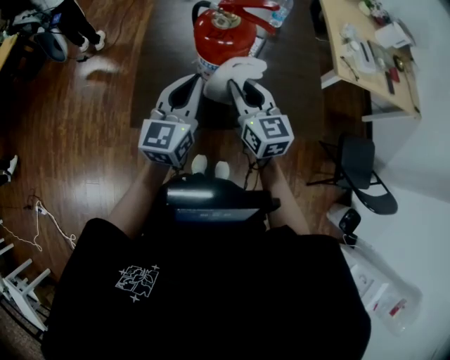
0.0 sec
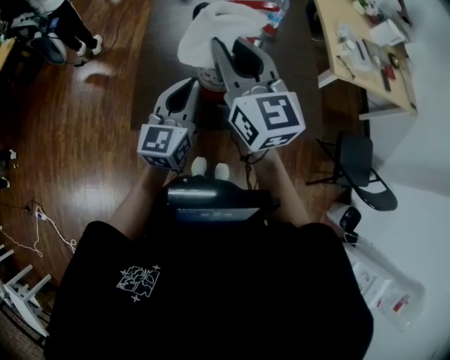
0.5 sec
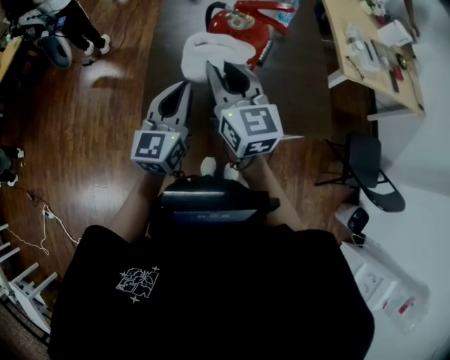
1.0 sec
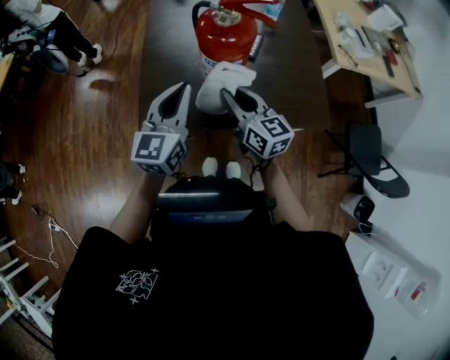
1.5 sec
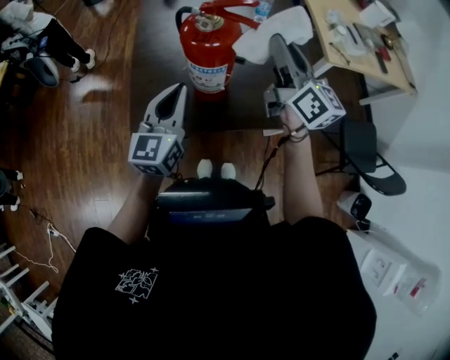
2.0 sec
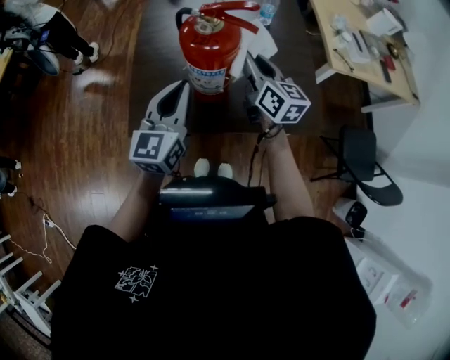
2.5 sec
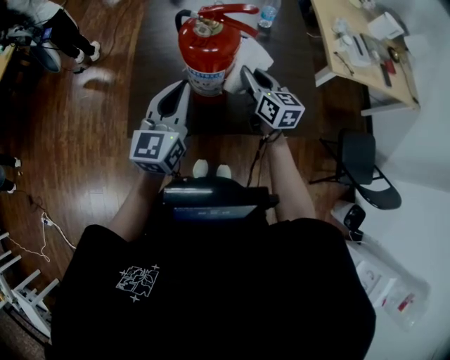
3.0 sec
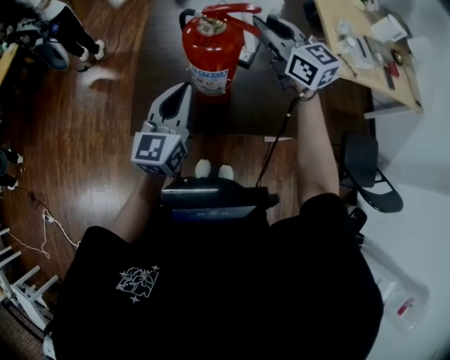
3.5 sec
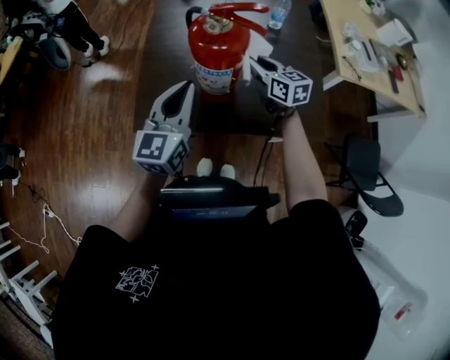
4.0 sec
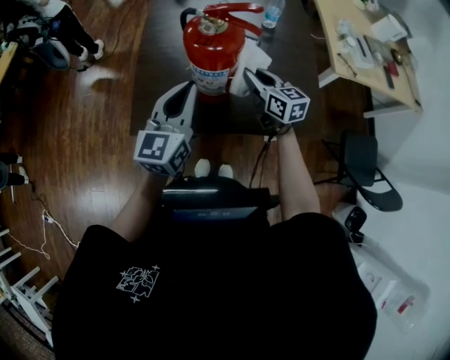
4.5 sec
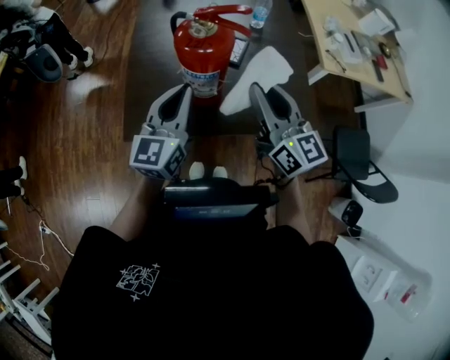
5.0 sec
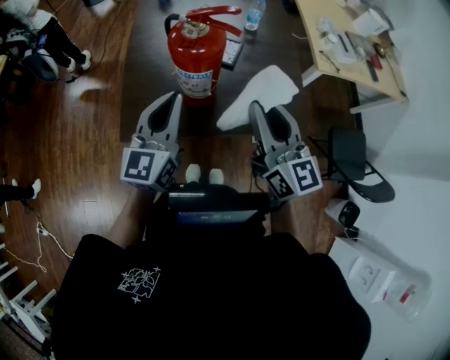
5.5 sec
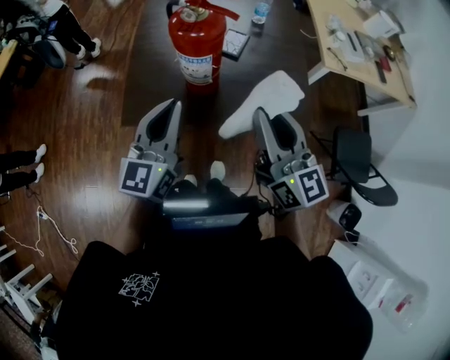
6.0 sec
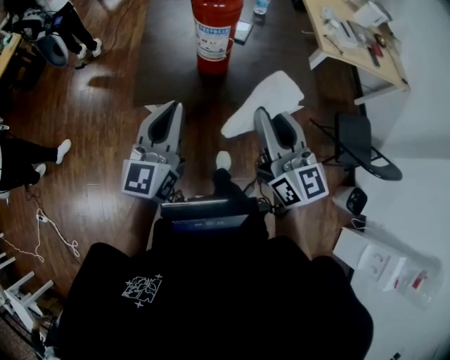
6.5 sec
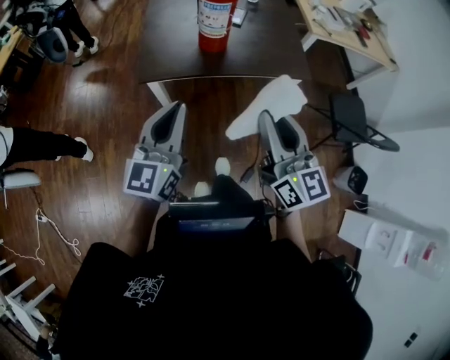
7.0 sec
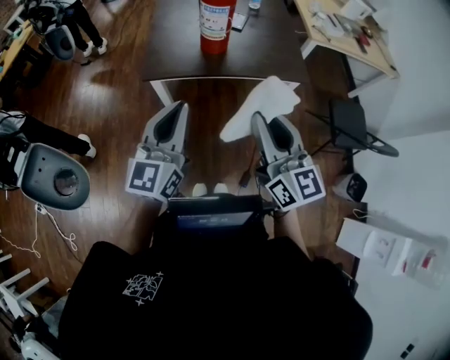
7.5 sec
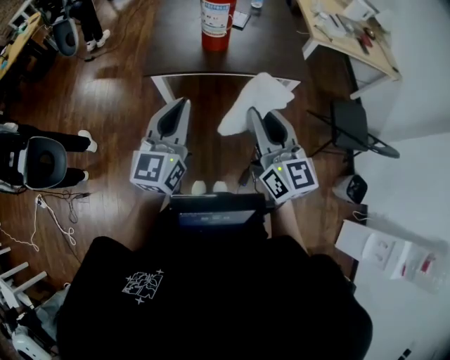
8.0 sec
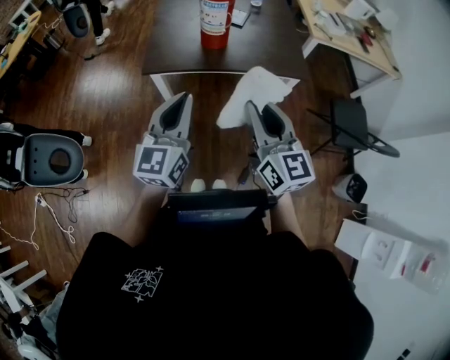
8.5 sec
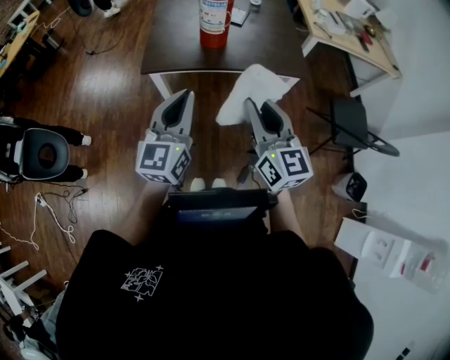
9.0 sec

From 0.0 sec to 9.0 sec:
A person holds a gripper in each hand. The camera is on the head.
From 0.0 sec to 2.0 sec: The right gripper goes up and down, some 20 cm each way, reversing 2 times, and turns by roughly 30 degrees.
From 2.0 sec to 4.5 sec: The right gripper swings up and down, approximately 20 cm each way, with 2 reversals, and swivels roughly 30 degrees.
From 4.5 sec to 7.0 sec: The right gripper is displaced backward and upward by approximately 50 cm, and swivels approximately 30 degrees; the left gripper travels backward by some 35 cm.
From 7.0 sec to 9.0 sec: The left gripper shifts roughly 5 cm to the right.

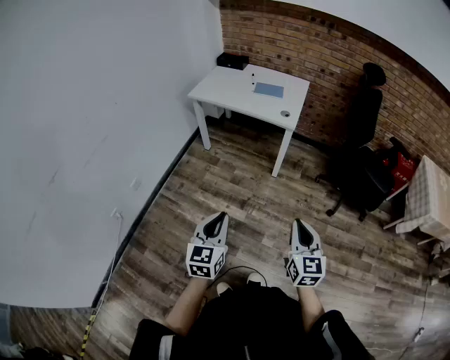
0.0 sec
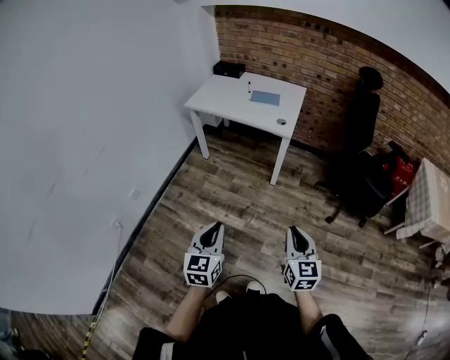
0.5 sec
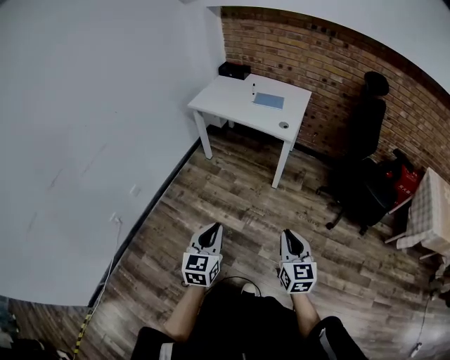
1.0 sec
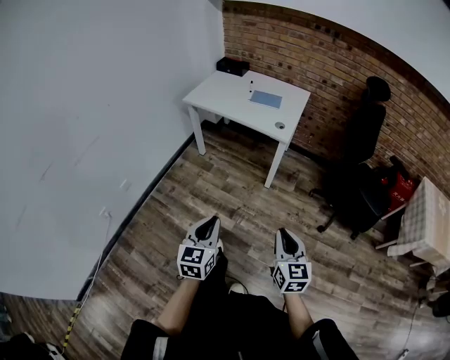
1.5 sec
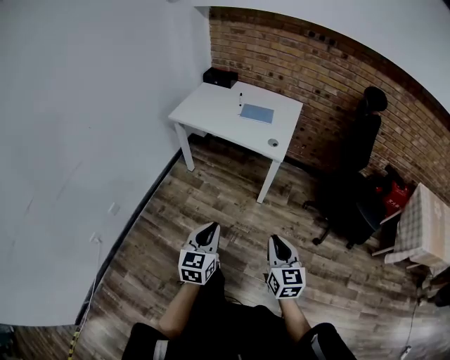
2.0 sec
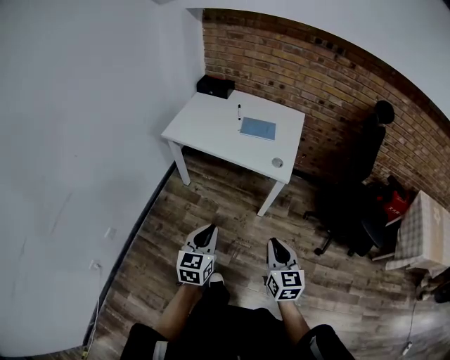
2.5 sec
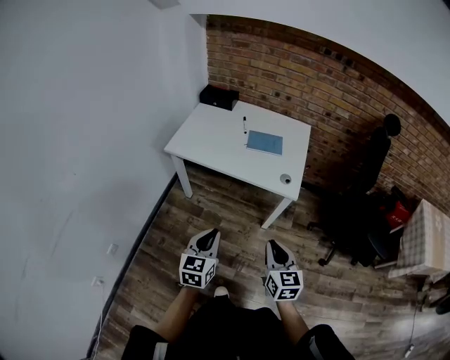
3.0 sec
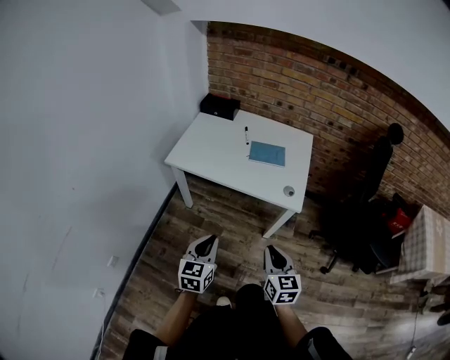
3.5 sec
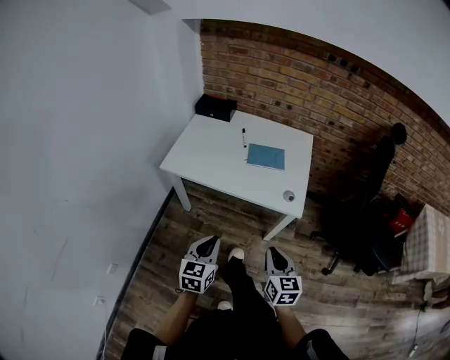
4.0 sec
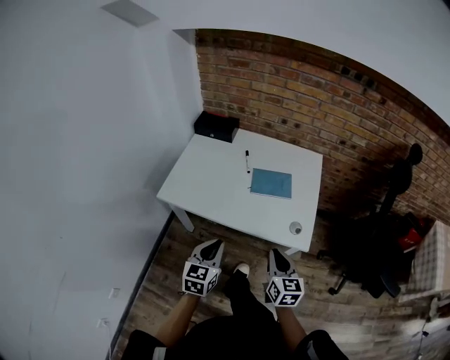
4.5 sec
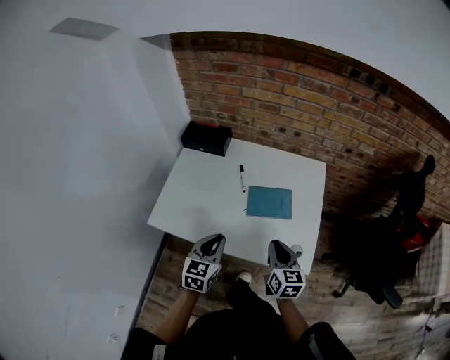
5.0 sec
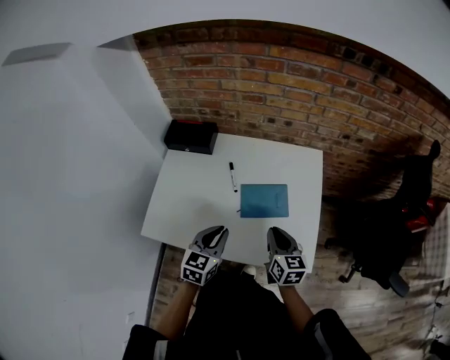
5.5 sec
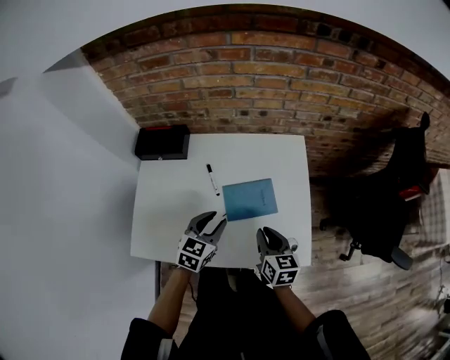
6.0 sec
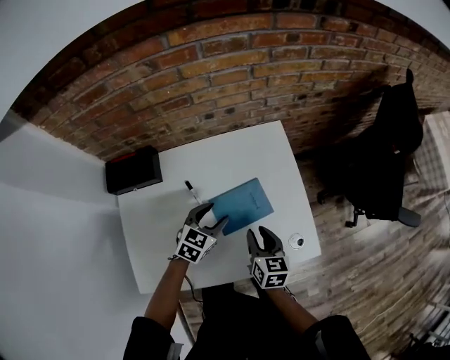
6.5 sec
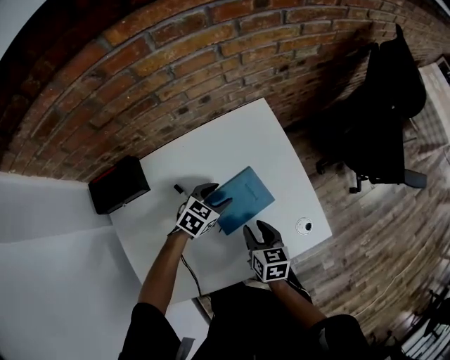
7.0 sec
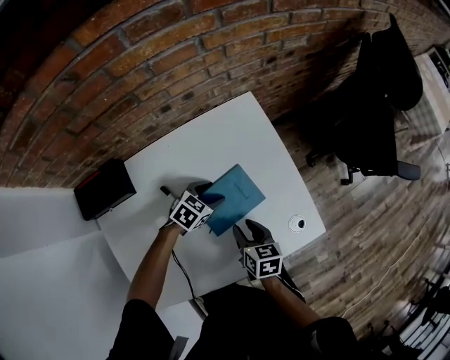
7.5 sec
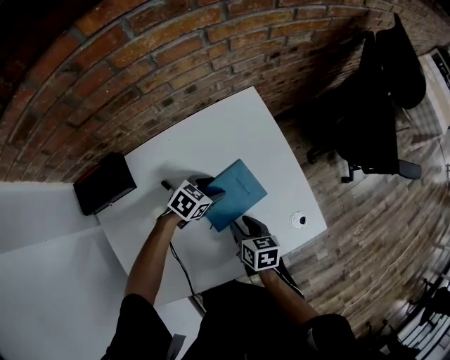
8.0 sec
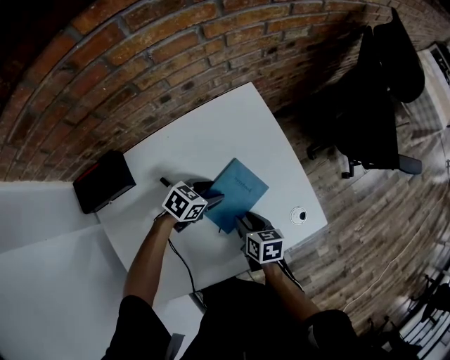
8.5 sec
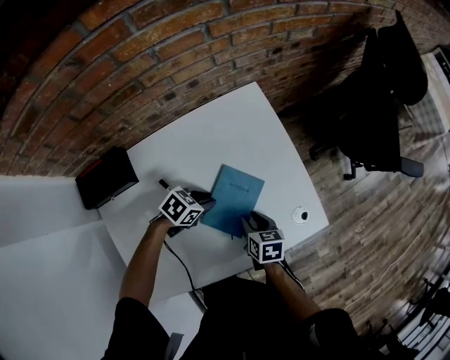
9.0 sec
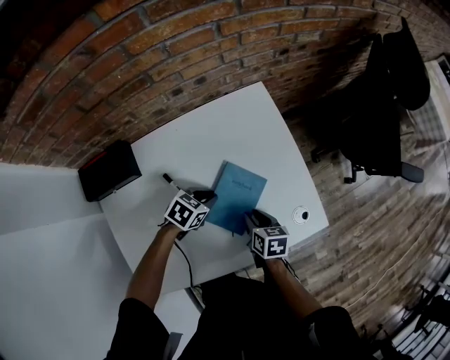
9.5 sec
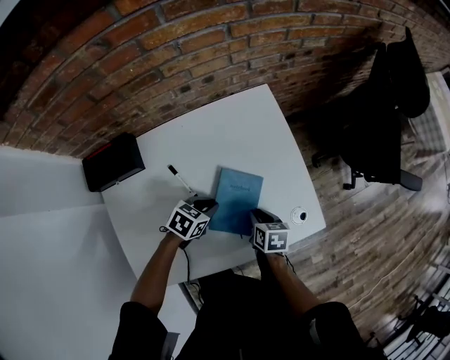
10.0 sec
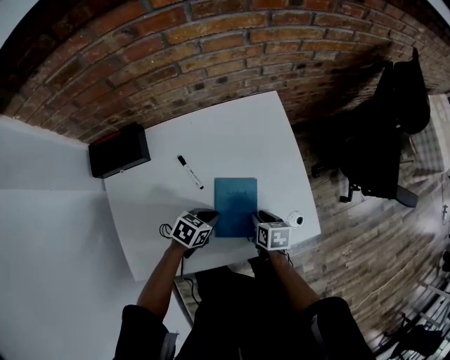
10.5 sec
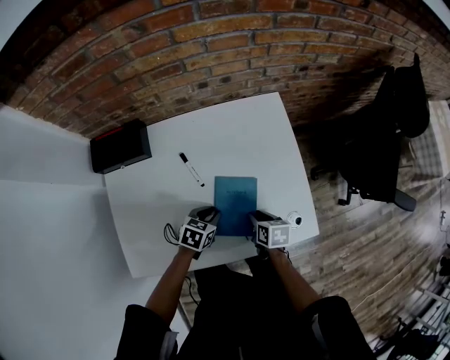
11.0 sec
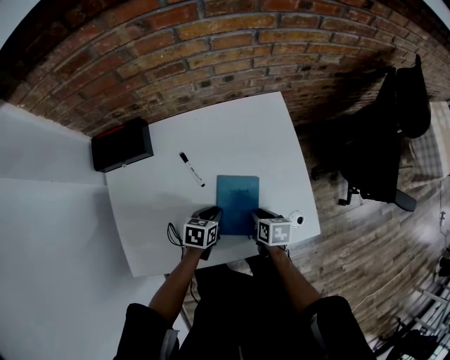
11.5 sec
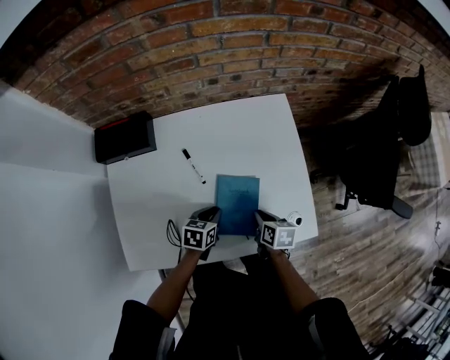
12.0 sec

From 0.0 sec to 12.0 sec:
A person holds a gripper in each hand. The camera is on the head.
From 0.0 sec to 2.0 sec: The two grippers go some 20 cm forward.
From 2.0 sec to 4.0 sec: The two grippers go approximately 35 cm forward and to the left.
From 4.0 sec to 6.0 sec: The pair of grippers is taken forward, roughly 50 cm. The left gripper rotates approximately 30 degrees, and opens up.
From 6.0 sec to 8.0 sec: Both grippers travel together downward, roughly 15 cm. The right gripper rotates some 30 degrees, and opens its fingers. The left gripper swivels roughly 50 degrees, and opens its fingers.
From 8.0 sec to 10.0 sec: The left gripper shifts approximately 10 cm backward, and closes its fingers. The right gripper shifts by approximately 5 cm.
From 10.0 sec to 12.0 sec: The left gripper heads backward, covering roughly 5 cm, and swivels some 30 degrees.

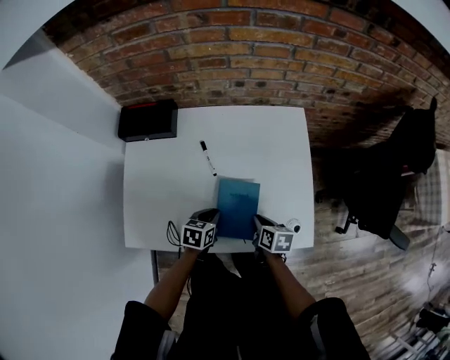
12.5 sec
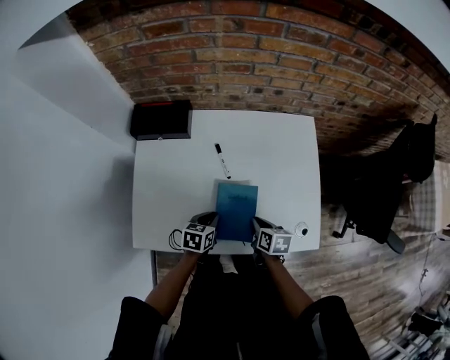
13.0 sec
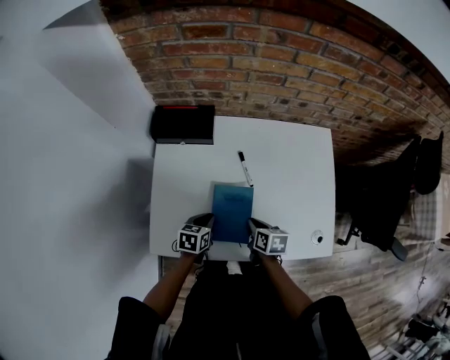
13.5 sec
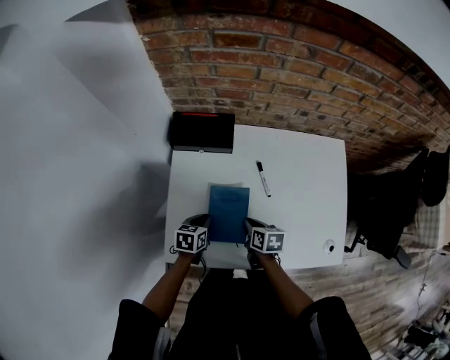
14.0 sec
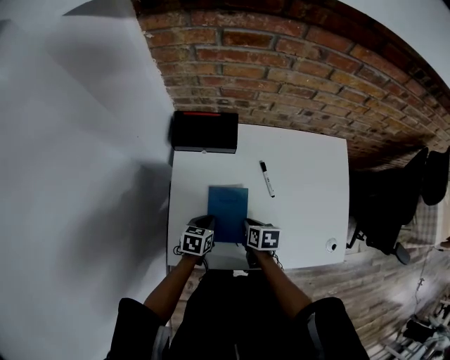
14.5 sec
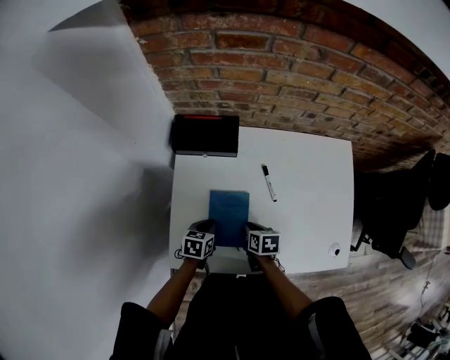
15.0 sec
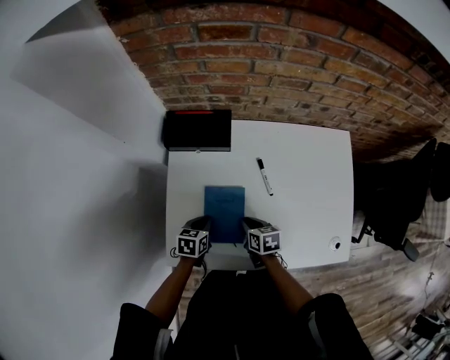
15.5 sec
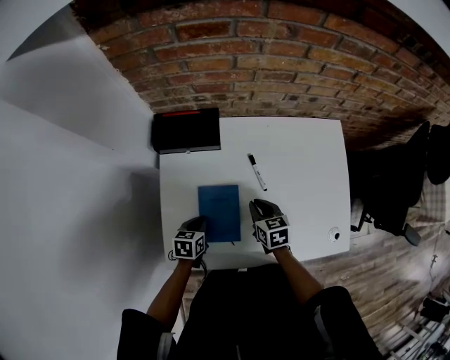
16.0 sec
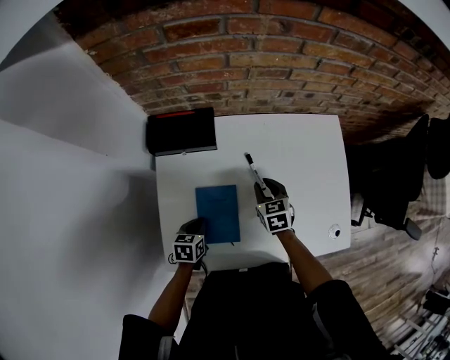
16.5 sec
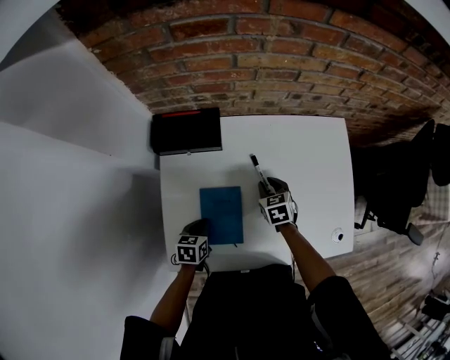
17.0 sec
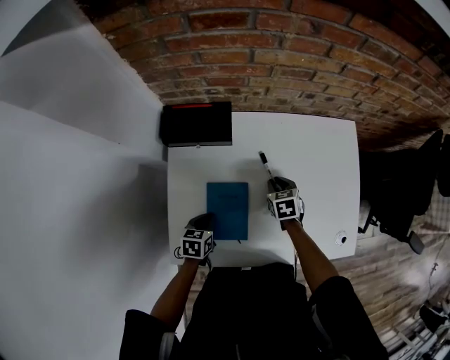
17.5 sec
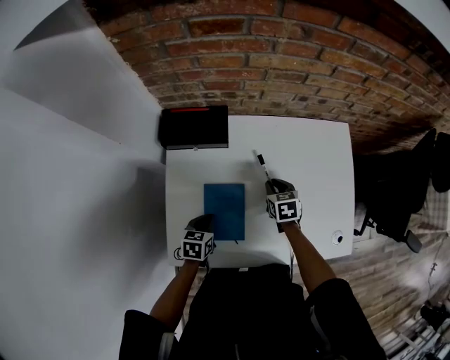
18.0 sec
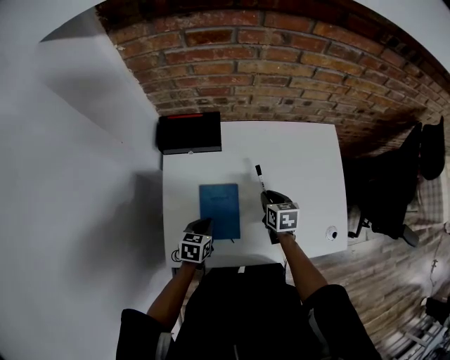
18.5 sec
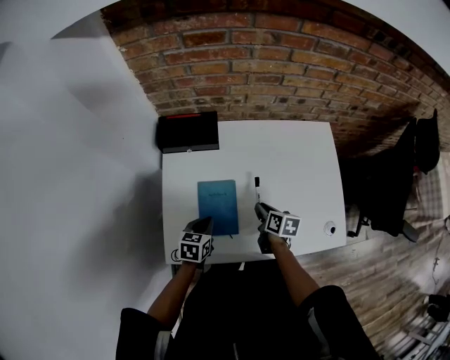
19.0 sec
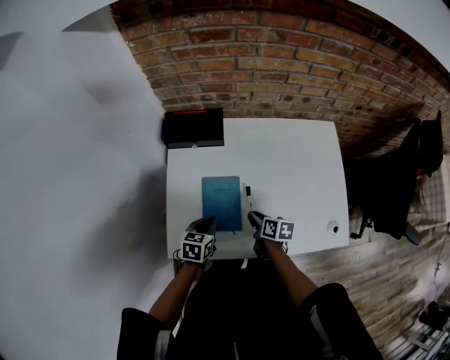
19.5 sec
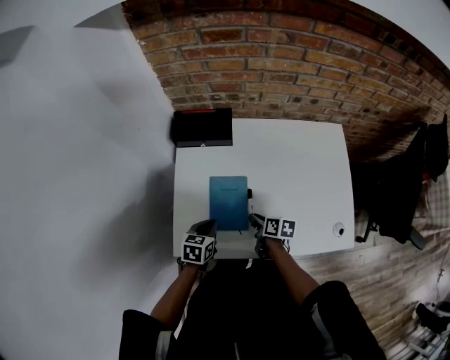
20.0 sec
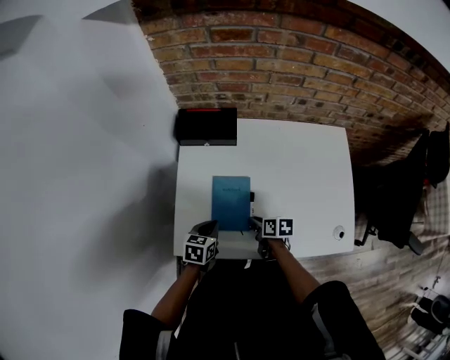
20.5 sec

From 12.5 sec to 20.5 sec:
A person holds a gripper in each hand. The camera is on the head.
From 12.5 sec to 14.5 sec: The two grippers go approximately 25 cm to the left.
From 14.5 sec to 16.5 sec: The right gripper is displaced forward and to the right by some 15 cm, and swivels some 30 degrees.
From 16.5 sec to 18.5 sec: The grippers make only small movements.
From 18.5 sec to 20.5 sec: The right gripper goes about 15 cm backward, to the left and downward, and rotates about 30 degrees. The left gripper changes place by roughly 5 cm.
